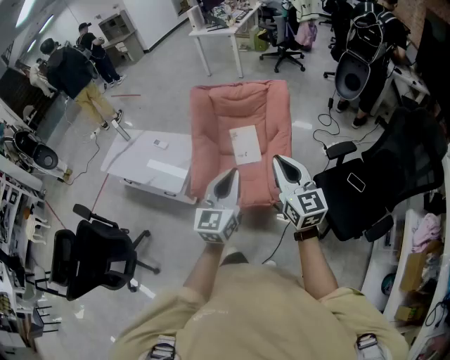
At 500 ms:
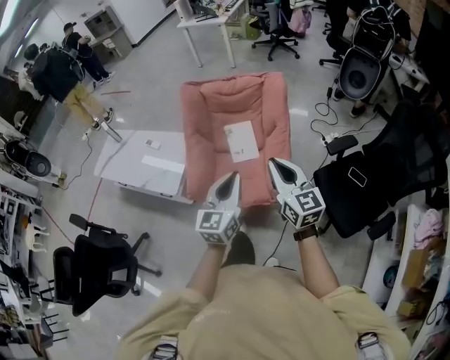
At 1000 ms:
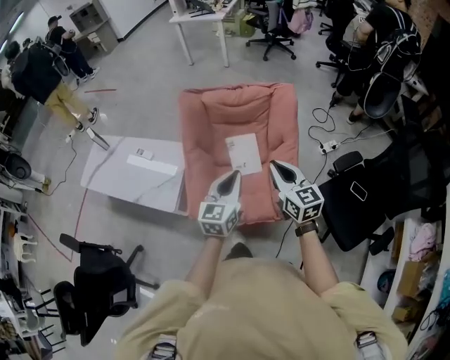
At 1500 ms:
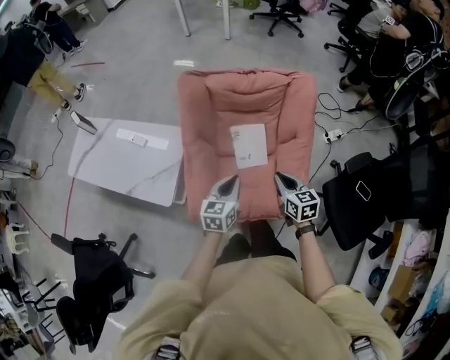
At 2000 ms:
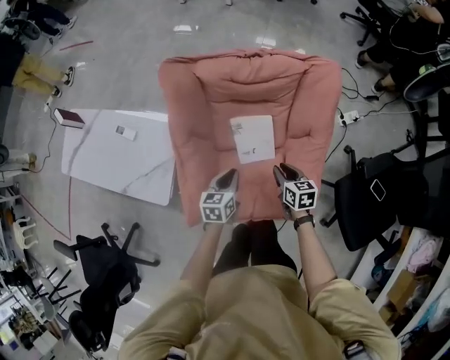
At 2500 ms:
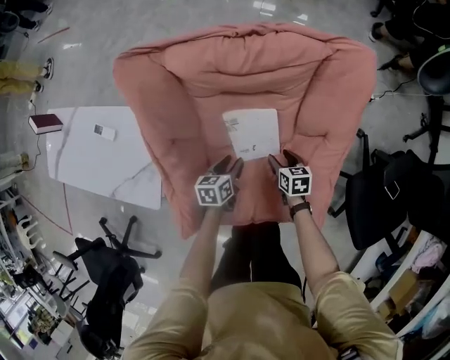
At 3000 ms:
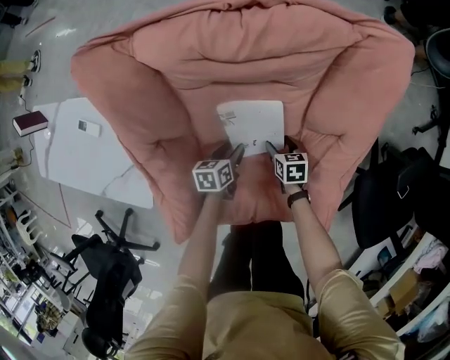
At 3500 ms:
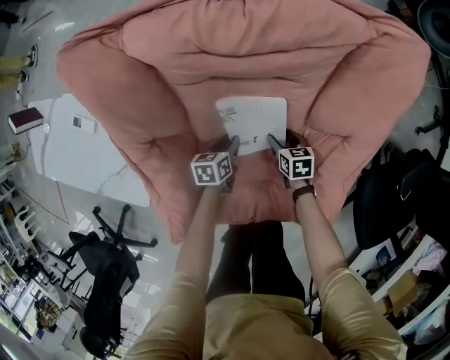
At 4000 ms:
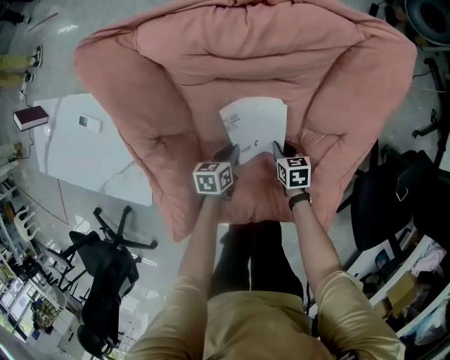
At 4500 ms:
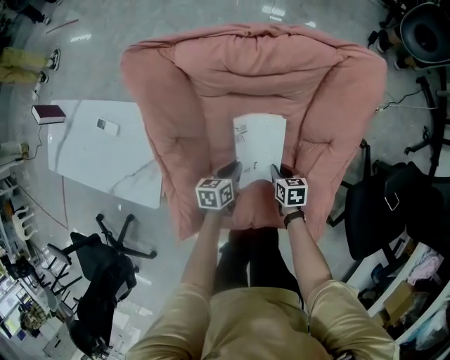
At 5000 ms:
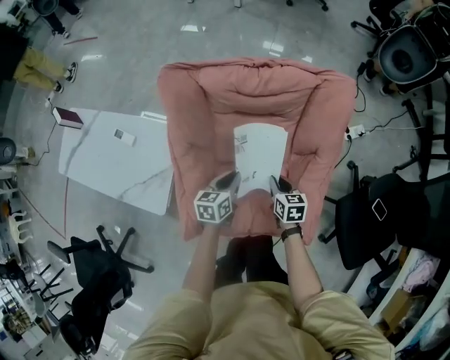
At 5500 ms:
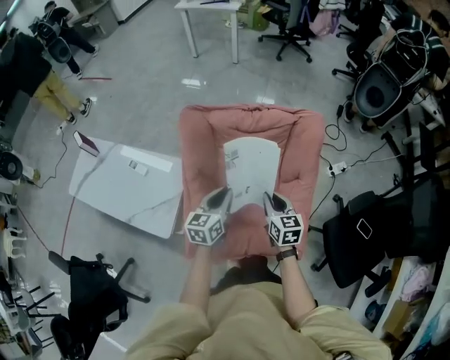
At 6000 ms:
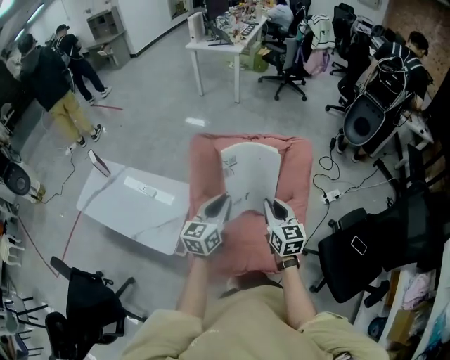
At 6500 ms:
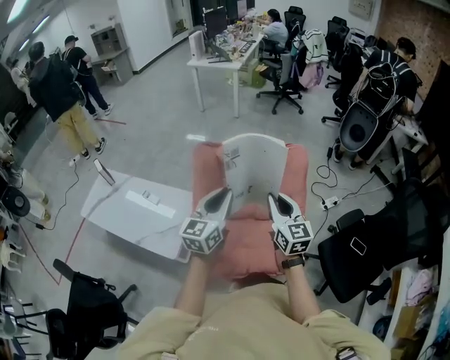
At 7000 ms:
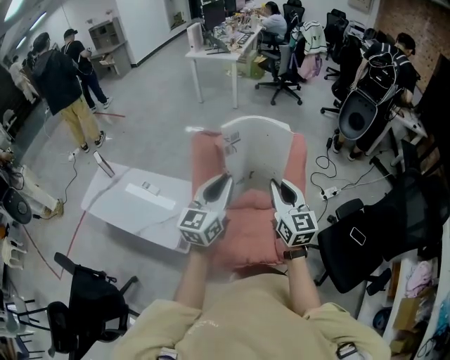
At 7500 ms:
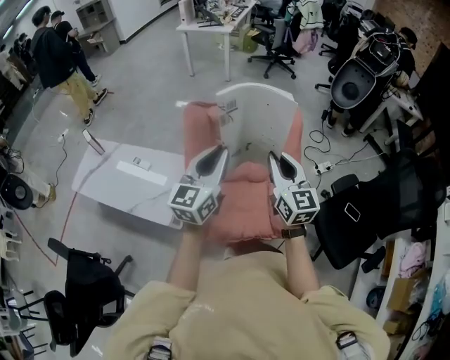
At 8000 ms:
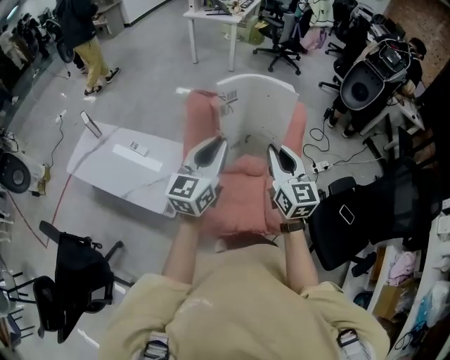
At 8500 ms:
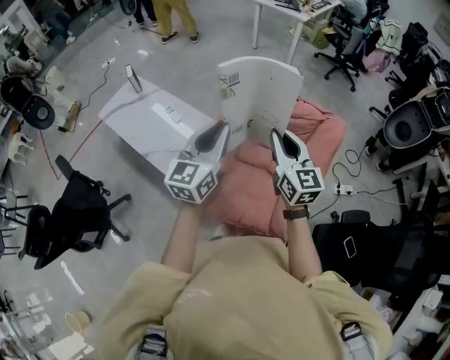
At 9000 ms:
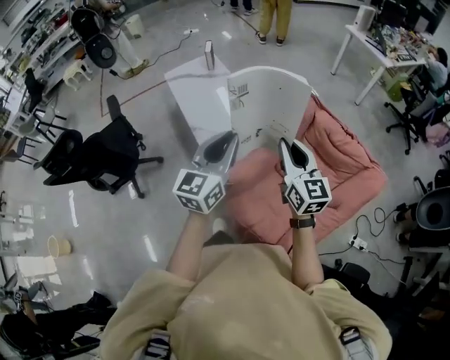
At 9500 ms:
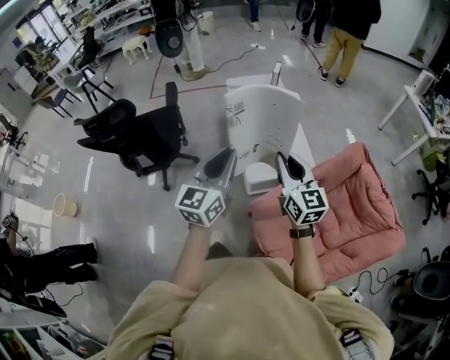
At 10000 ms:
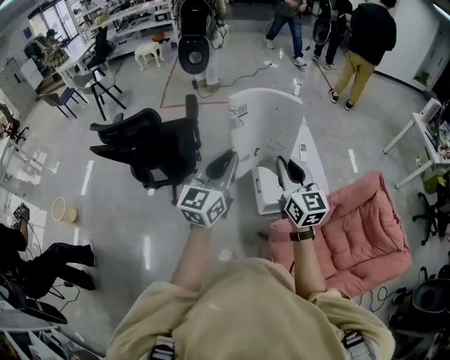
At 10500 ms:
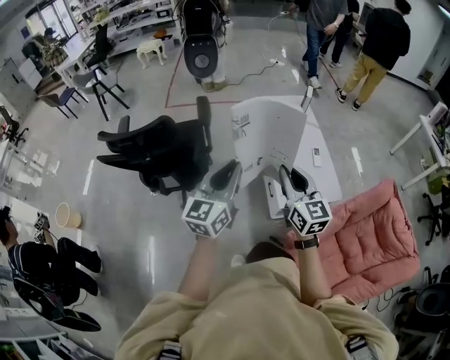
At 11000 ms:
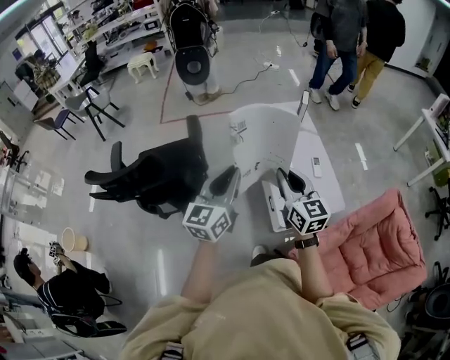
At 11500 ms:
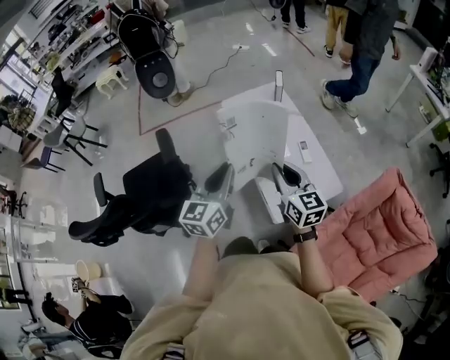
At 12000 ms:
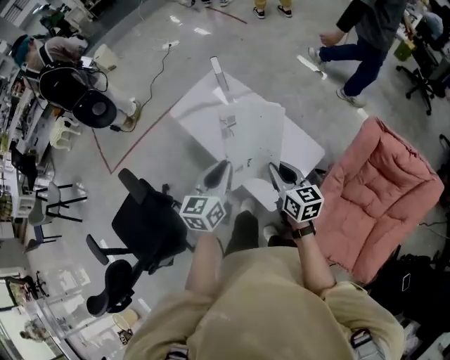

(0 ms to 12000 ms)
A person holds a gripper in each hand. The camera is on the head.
0 ms - 2000 ms: The pair of grippers is taken forward, some 40 cm. Both grippers move downward, some 40 cm. The left gripper tips its fingers downward by some 40 degrees. Meanwhile the right gripper angles its fingers downward, by approximately 40 degrees.
2000 ms - 4000 ms: Both grippers move downward, roughly 25 cm. The right gripper opens and closes again, while the left gripper opens and closes again.
4000 ms - 6000 ms: Both grippers move upward, some 60 cm. The left gripper angles its fingers upward, by some 40 degrees. The right gripper angles its fingers upward, by some 40 degrees.
6000 ms - 8000 ms: Both grippers travel together upward and backward, approximately 15 cm.
8000 ms - 10000 ms: Both grippers are carried about 50 cm. The right gripper swivels roughly 70 degrees, while the left gripper changes its angle by some 70 degrees.
10000 ms - 12000 ms: The right gripper changes place by roughly 35 cm, and swivels some 40 degrees; the left gripper shifts by roughly 40 cm, and swivels approximately 40 degrees.

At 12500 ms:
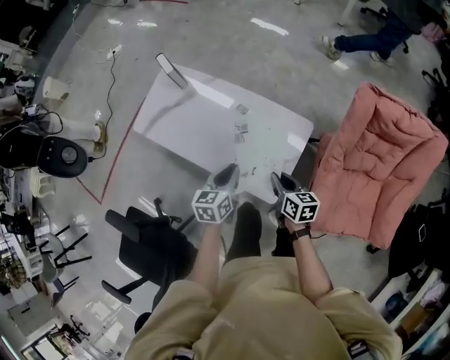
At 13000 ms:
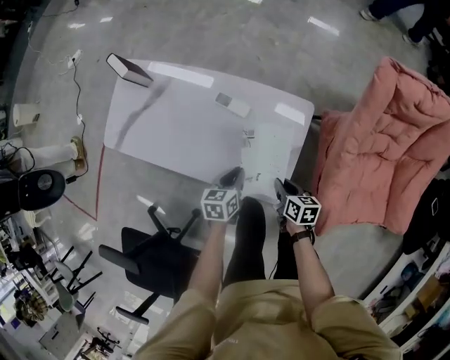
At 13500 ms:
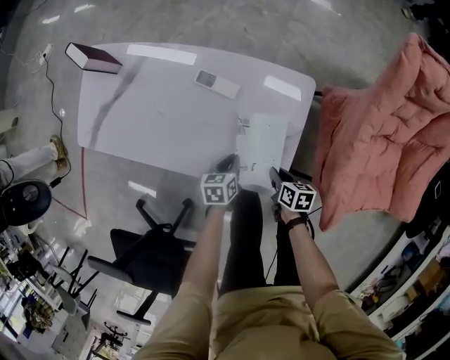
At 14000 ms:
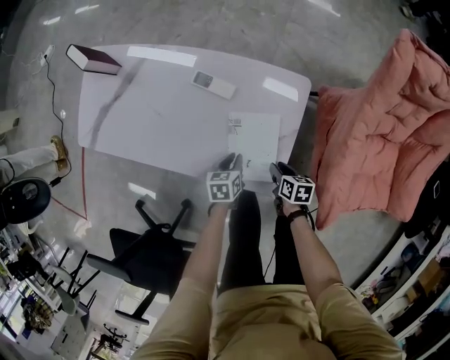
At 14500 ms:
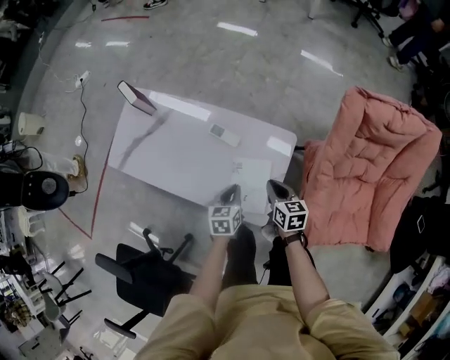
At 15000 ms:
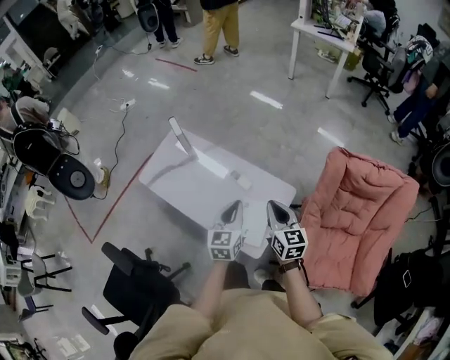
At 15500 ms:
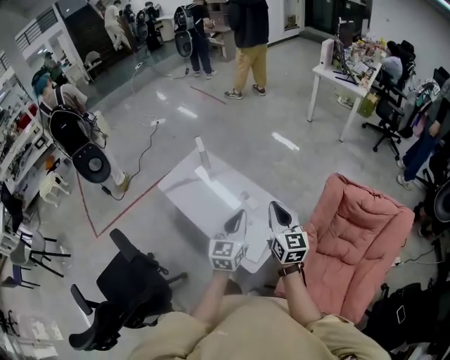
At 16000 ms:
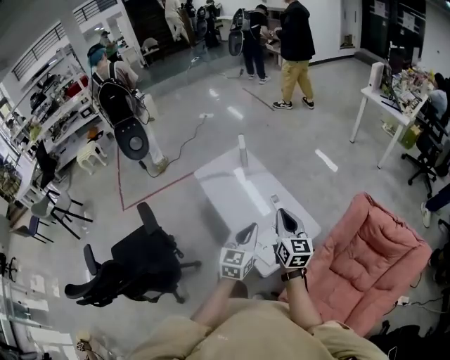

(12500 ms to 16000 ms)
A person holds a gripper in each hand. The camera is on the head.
12500 ms - 14500 ms: The right gripper moves forward and to the right, some 10 cm, and moves about 35 cm downward and comes back. The left gripper goes approximately 15 cm downward.
14500 ms - 16000 ms: The left gripper goes roughly 40 cm upward and backward, and angles its fingers upward, by roughly 30 degrees. The right gripper travels upward by roughly 40 cm, and tilts its fingers about 30 degrees upward.

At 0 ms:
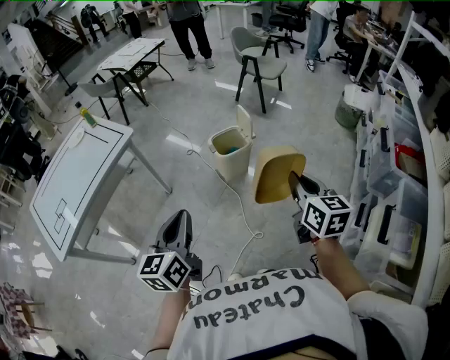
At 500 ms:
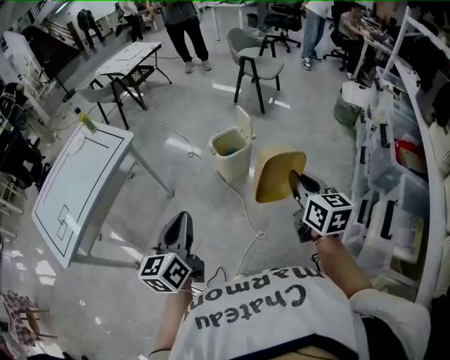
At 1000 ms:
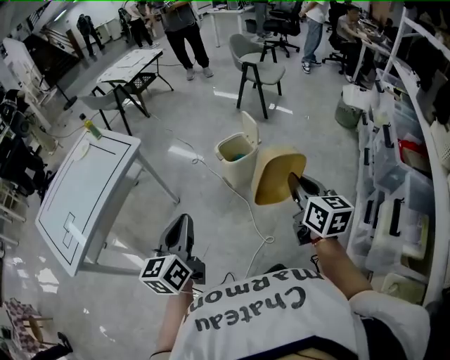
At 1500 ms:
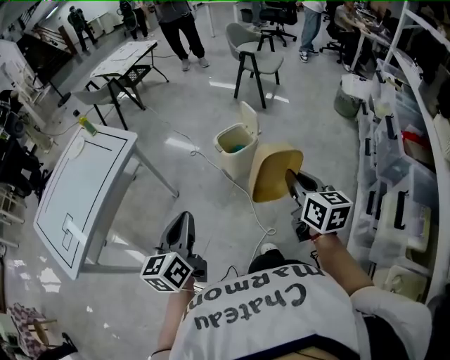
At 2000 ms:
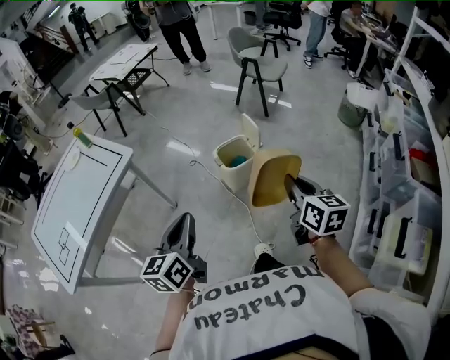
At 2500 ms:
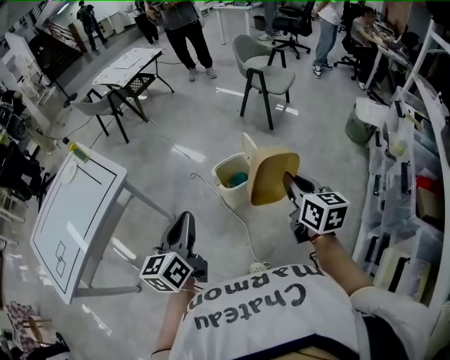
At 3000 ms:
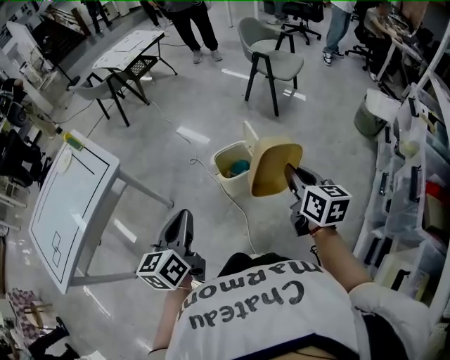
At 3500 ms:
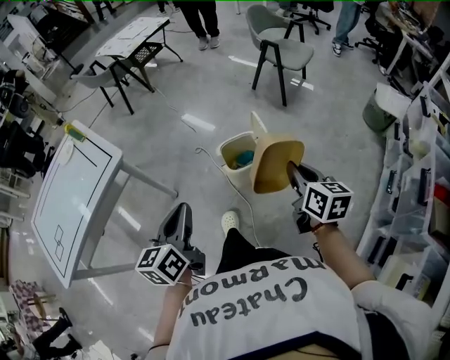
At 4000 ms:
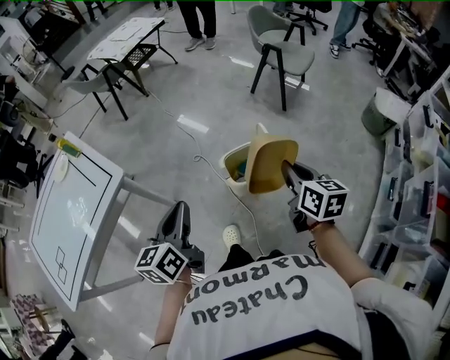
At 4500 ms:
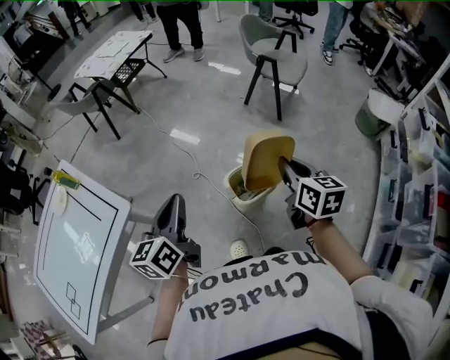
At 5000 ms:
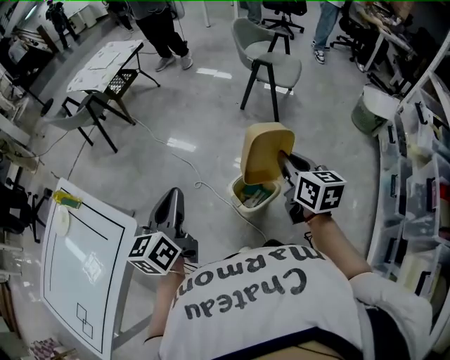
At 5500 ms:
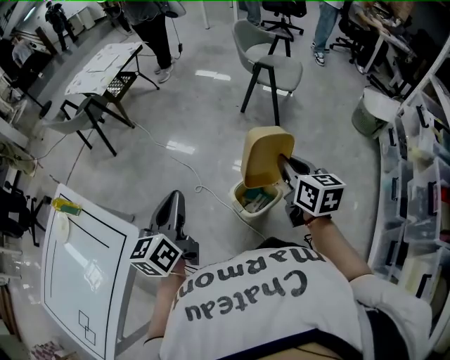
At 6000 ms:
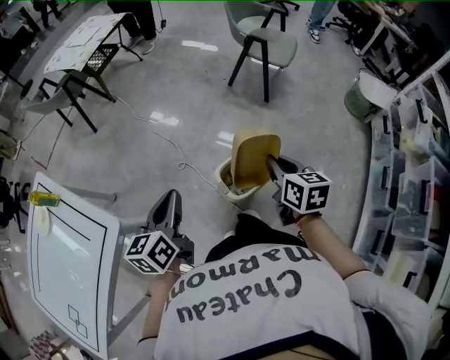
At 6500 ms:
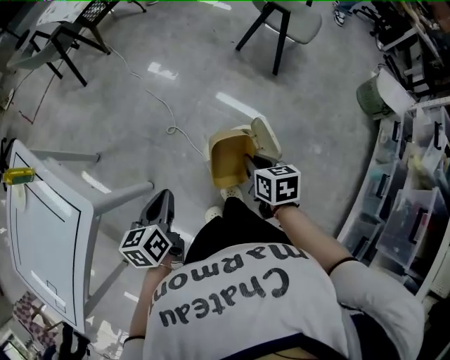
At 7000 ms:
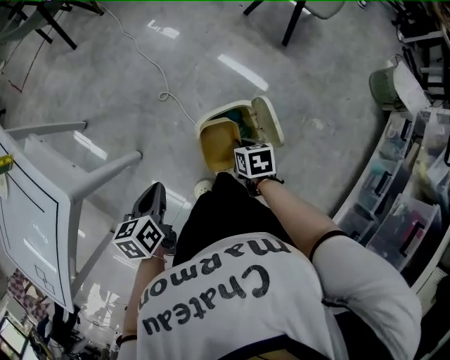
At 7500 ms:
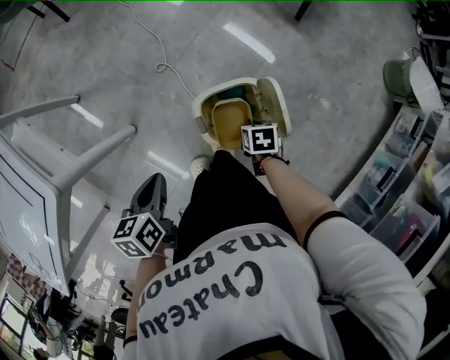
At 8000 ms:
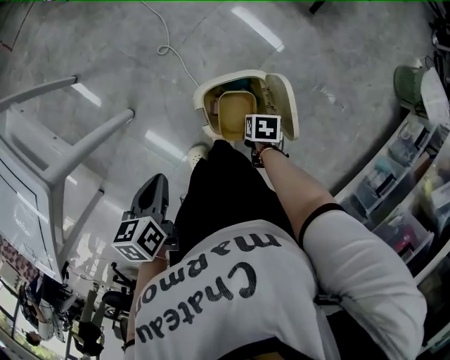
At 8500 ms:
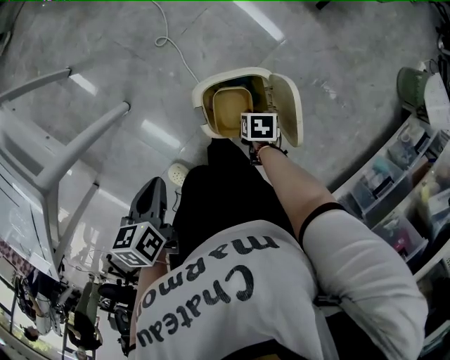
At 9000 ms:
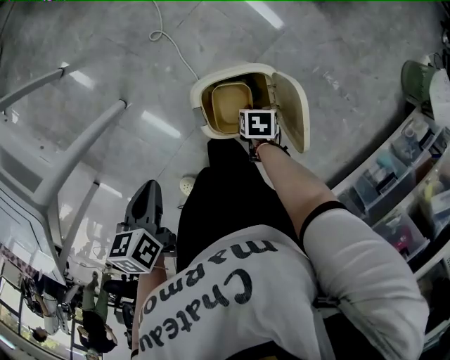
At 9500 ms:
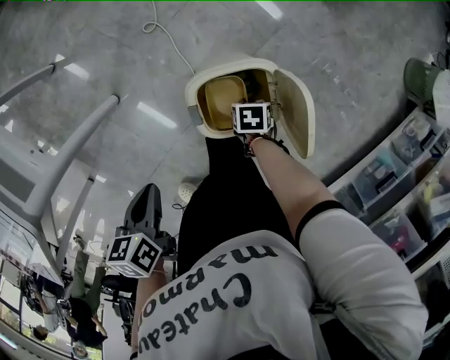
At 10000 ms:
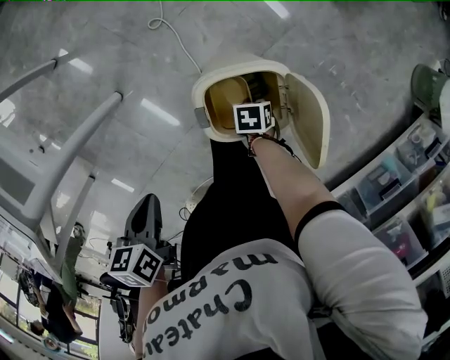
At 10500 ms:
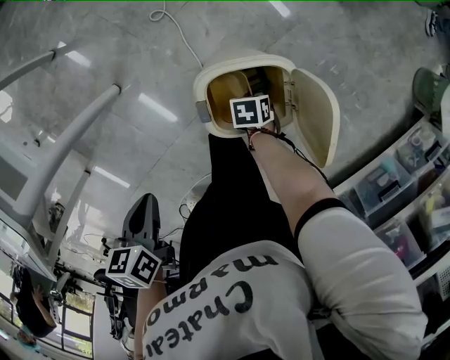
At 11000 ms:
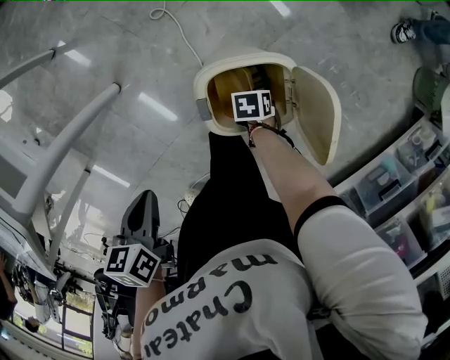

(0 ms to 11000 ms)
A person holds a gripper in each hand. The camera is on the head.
0 ms - 2000 ms: The right gripper travels forward and to the left by some 10 cm, while the left gripper travels forward by about 10 cm.
2000 ms - 3500 ms: The left gripper travels forward and to the right by approximately 15 cm. Meanwhile the right gripper heads forward, covering approximately 20 cm.
3500 ms - 5500 ms: Both grippers move forward and to the left, roughly 30 cm.
5500 ms - 7500 ms: The right gripper moves downward, approximately 50 cm, and angles its fingers downward, by roughly 50 degrees. Meanwhile the left gripper goes approximately 30 cm downward, and tips its fingers downward by about 40 degrees.
7500 ms - 9000 ms: The left gripper moves roughly 5 cm. The right gripper goes some 10 cm downward.
9000 ms - 11000 ms: The left gripper shifts by some 5 cm; the right gripper heads downward, covering about 10 cm.
